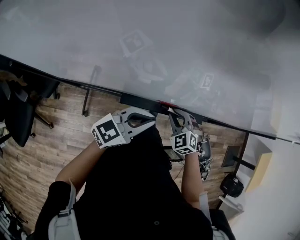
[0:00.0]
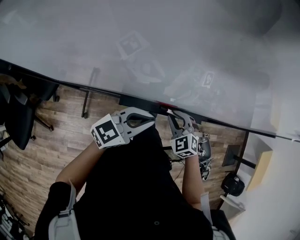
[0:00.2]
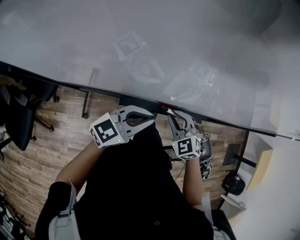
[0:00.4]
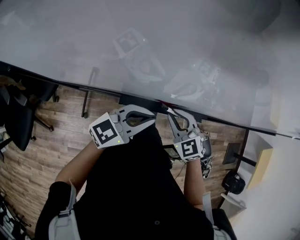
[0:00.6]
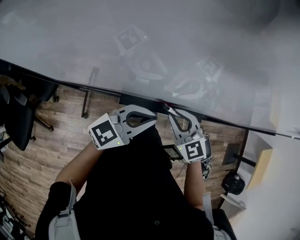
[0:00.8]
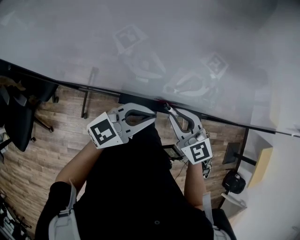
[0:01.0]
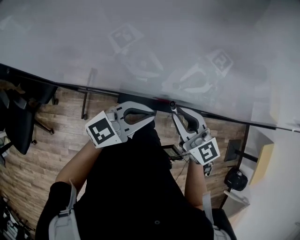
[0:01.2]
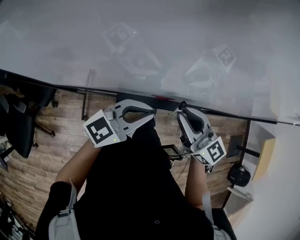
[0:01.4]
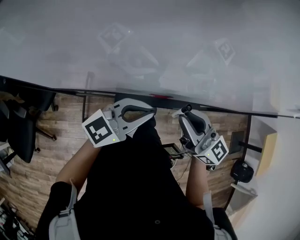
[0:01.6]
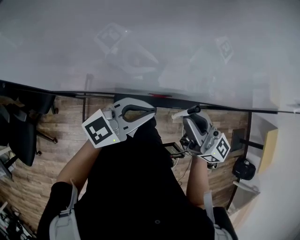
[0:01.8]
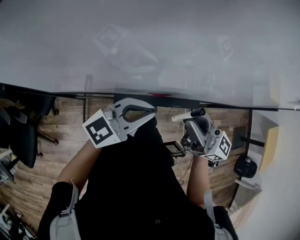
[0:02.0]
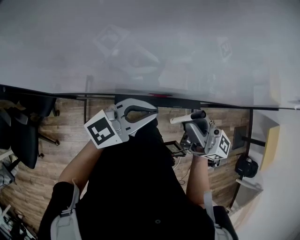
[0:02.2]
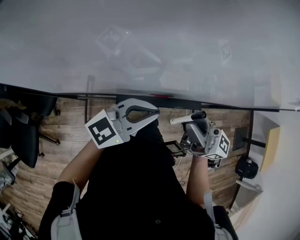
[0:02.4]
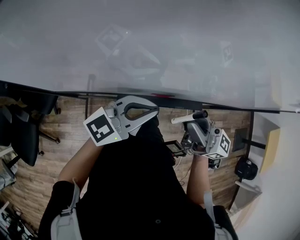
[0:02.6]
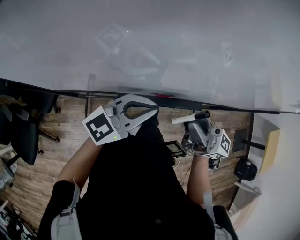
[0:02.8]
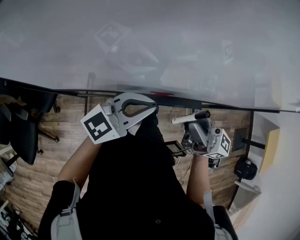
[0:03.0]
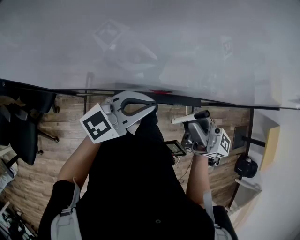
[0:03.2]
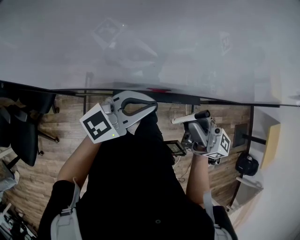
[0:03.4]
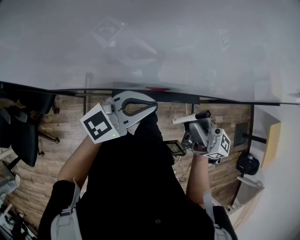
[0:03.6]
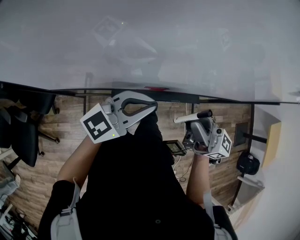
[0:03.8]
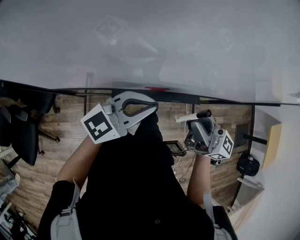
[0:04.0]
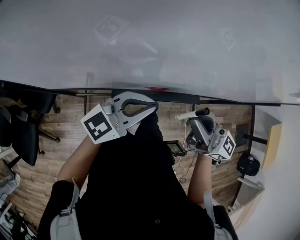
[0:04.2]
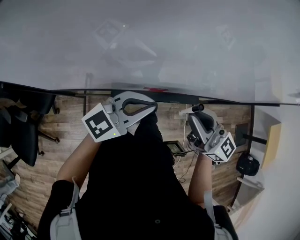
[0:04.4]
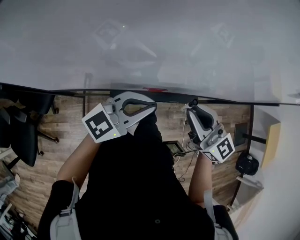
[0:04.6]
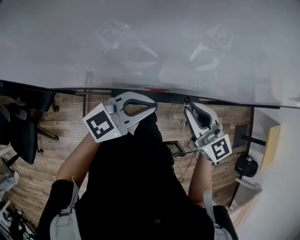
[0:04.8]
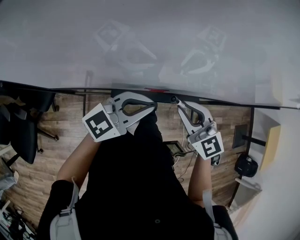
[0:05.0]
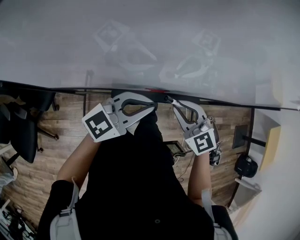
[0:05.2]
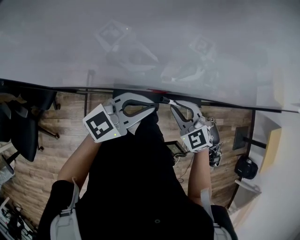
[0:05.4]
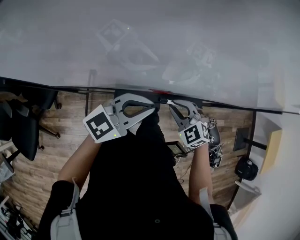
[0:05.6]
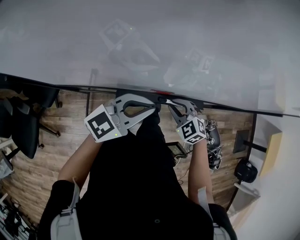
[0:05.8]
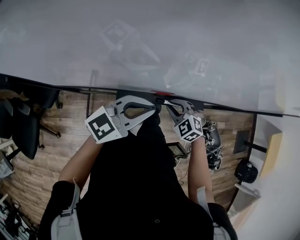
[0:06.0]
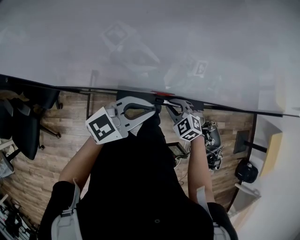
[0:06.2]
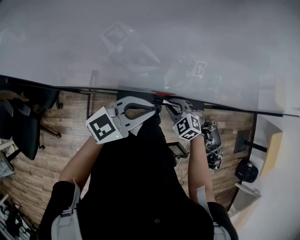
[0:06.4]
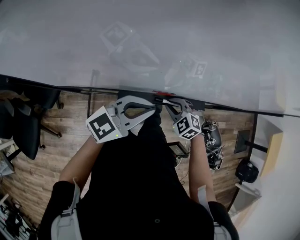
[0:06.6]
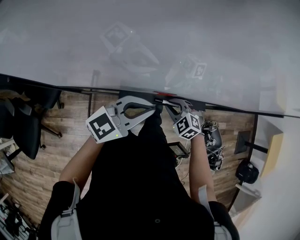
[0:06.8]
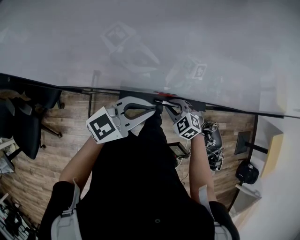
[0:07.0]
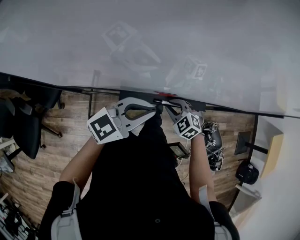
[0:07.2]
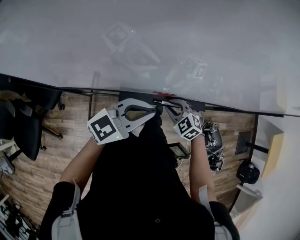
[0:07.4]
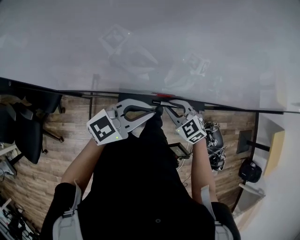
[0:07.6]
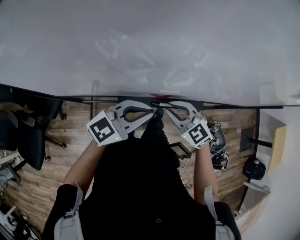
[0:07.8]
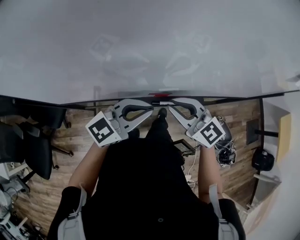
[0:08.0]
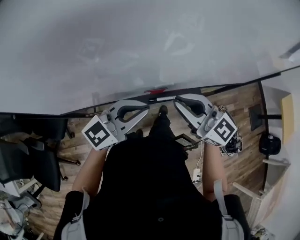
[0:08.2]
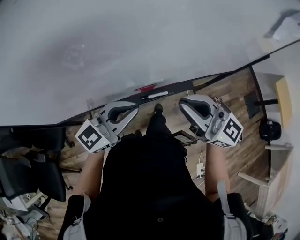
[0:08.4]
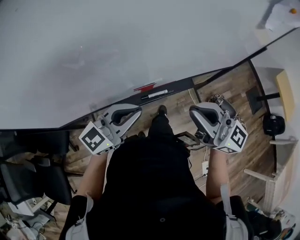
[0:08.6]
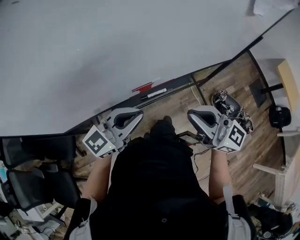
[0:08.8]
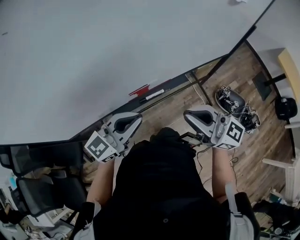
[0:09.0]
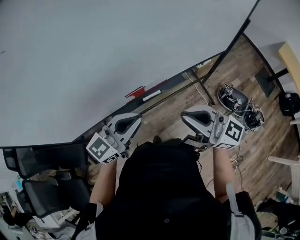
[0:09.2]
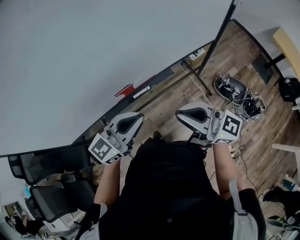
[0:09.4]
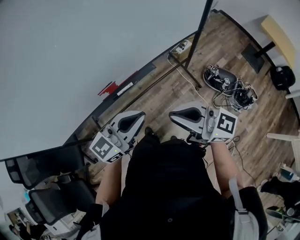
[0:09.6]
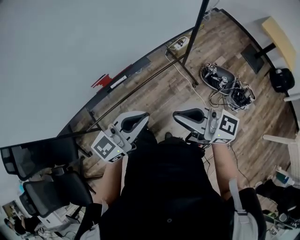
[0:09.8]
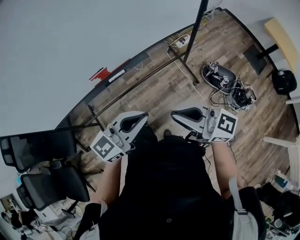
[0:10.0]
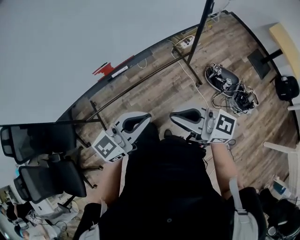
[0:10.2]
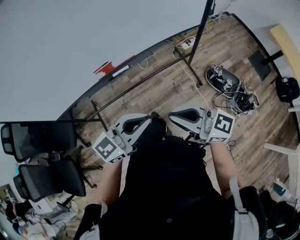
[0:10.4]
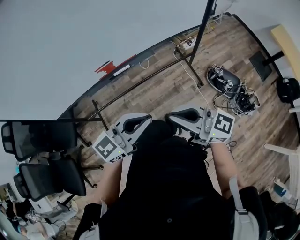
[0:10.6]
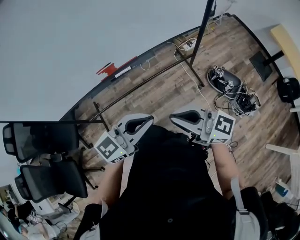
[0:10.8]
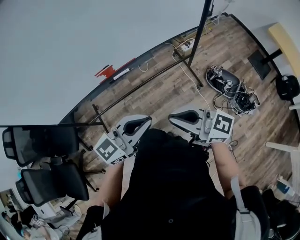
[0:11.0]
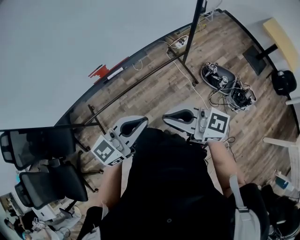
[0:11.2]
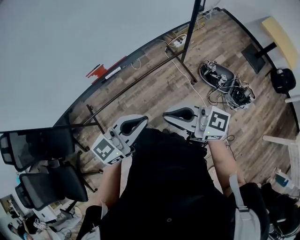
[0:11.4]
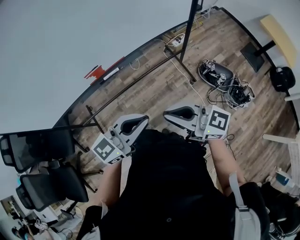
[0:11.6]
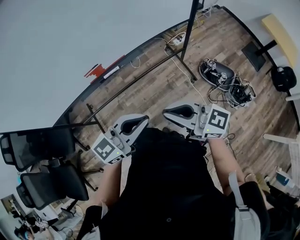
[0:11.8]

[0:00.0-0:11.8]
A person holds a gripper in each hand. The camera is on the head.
0:00.0 to 0:01.4: The right gripper heads upward, covering roughly 20 cm, and points its fingers about 40 degrees further upward, while the left gripper travels upward by about 5 cm.
0:01.4 to 0:03.0: The right gripper shifts by about 5 cm, and swivels about 30 degrees.
0:03.0 to 0:04.4: The right gripper turns by roughly 20 degrees.
0:04.4 to 0:06.0: The right gripper travels downward by roughly 25 cm, and points its fingers some 60 degrees further downward.
0:06.0 to 0:07.4: The grippers make only small movements.
0:07.4 to 0:08.8: The left gripper is displaced backward by approximately 5 cm; the right gripper heads upward and backward, covering approximately 30 cm, and tilts its fingers roughly 60 degrees upward.
0:08.8 to 0:10.4: The left gripper heads to the right and backward, covering some 30 cm. Meanwhile the right gripper travels backward and to the right by some 20 cm.
0:10.4 to 0:11.8: There are only small adjustments of the grippers.

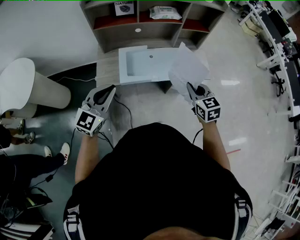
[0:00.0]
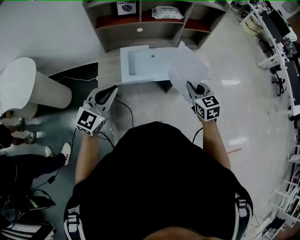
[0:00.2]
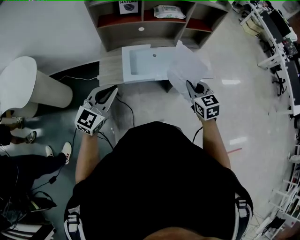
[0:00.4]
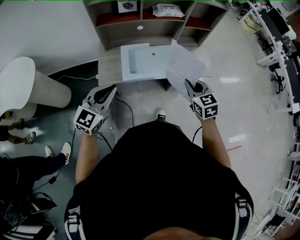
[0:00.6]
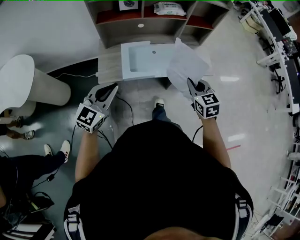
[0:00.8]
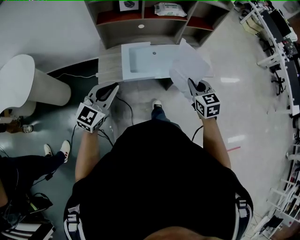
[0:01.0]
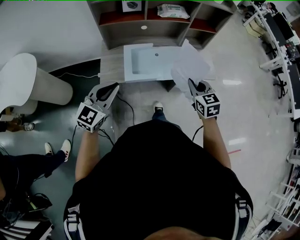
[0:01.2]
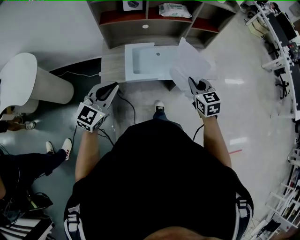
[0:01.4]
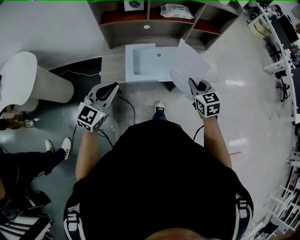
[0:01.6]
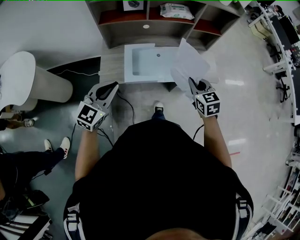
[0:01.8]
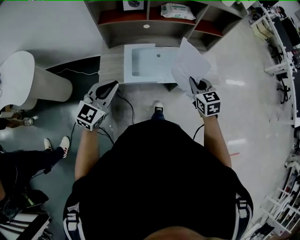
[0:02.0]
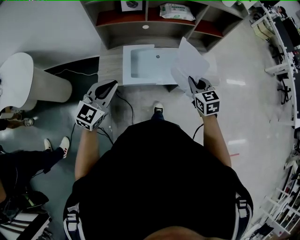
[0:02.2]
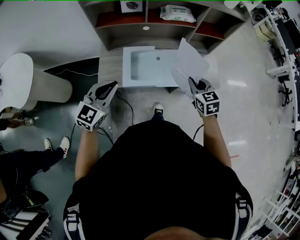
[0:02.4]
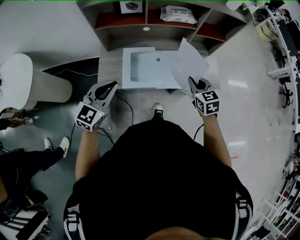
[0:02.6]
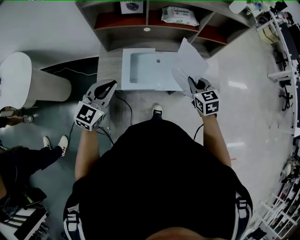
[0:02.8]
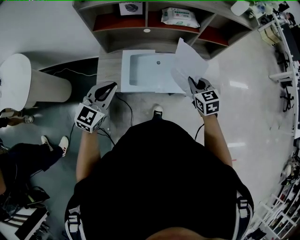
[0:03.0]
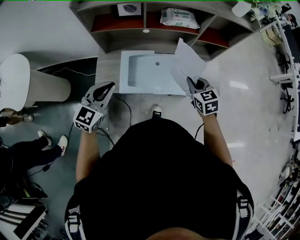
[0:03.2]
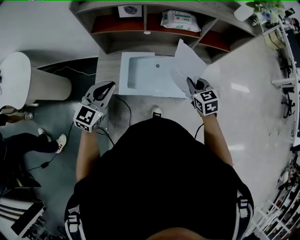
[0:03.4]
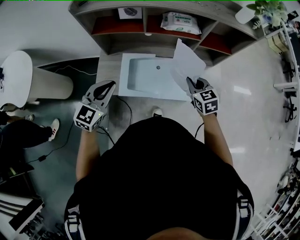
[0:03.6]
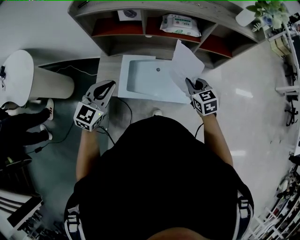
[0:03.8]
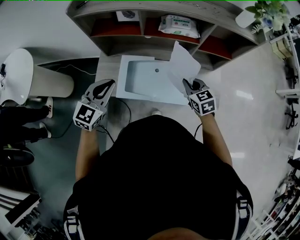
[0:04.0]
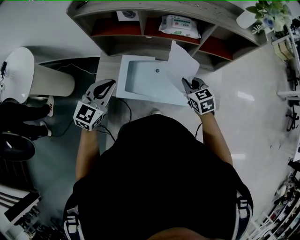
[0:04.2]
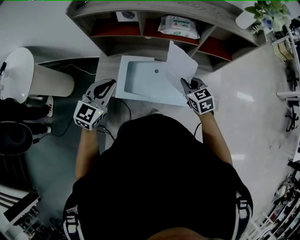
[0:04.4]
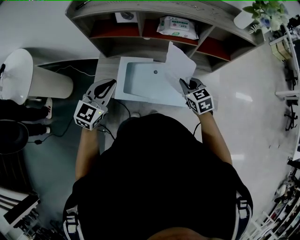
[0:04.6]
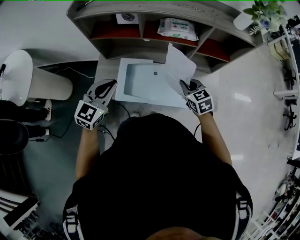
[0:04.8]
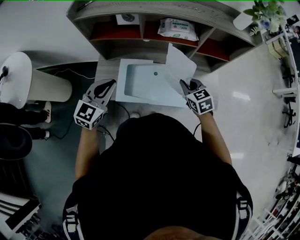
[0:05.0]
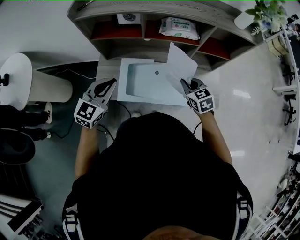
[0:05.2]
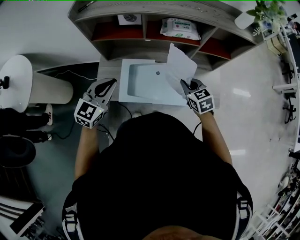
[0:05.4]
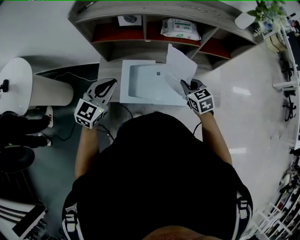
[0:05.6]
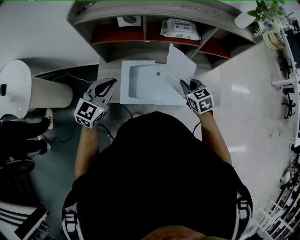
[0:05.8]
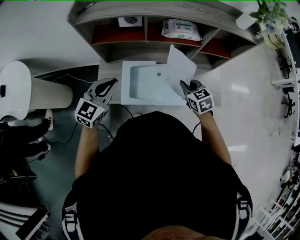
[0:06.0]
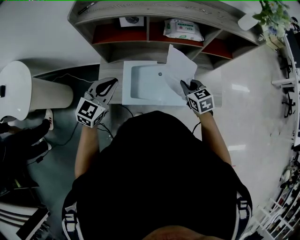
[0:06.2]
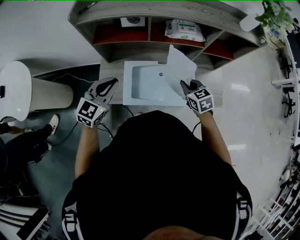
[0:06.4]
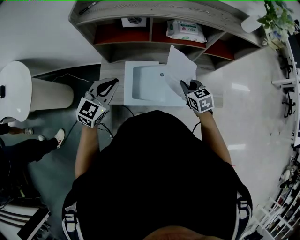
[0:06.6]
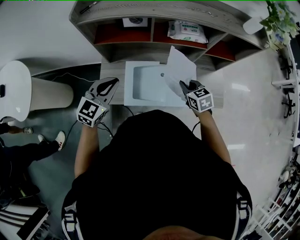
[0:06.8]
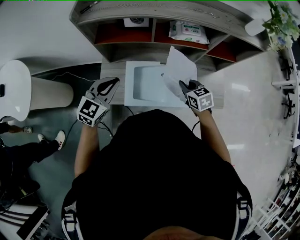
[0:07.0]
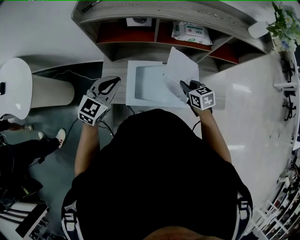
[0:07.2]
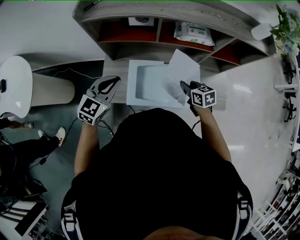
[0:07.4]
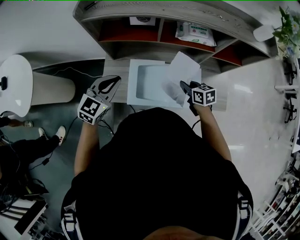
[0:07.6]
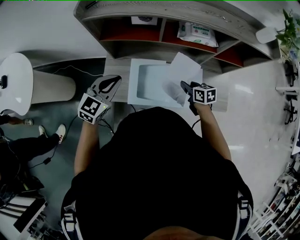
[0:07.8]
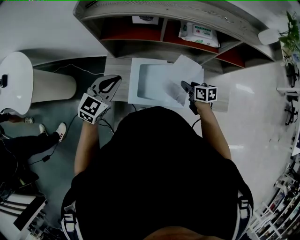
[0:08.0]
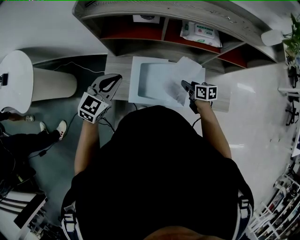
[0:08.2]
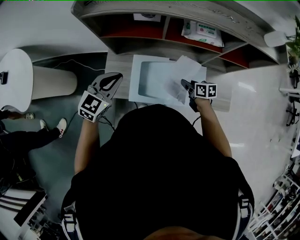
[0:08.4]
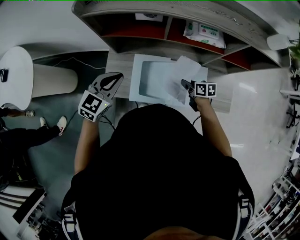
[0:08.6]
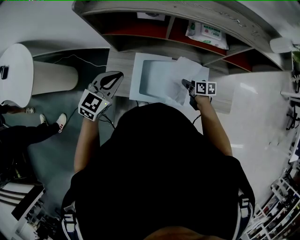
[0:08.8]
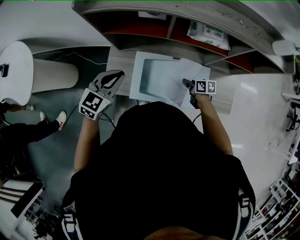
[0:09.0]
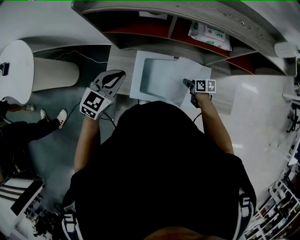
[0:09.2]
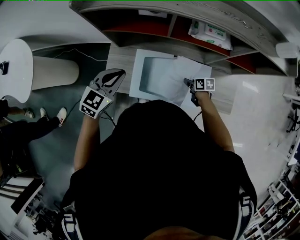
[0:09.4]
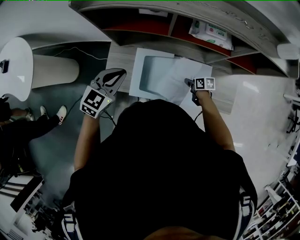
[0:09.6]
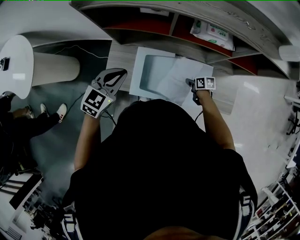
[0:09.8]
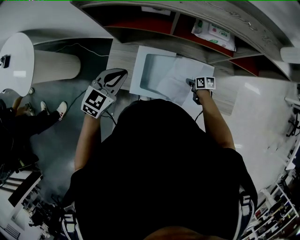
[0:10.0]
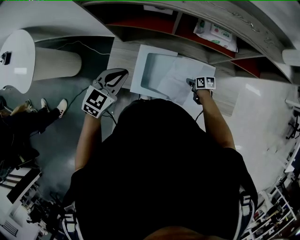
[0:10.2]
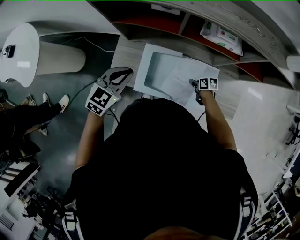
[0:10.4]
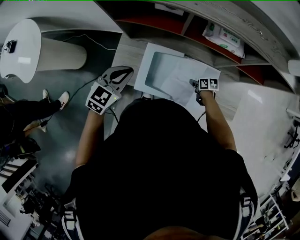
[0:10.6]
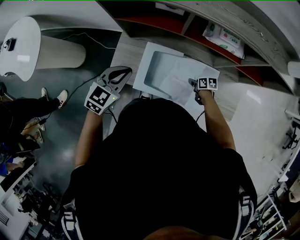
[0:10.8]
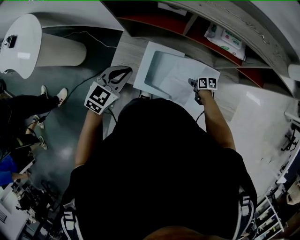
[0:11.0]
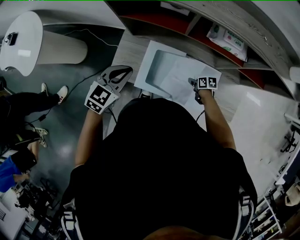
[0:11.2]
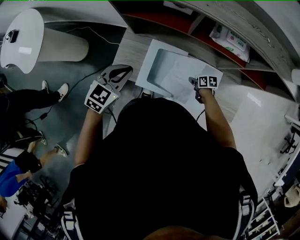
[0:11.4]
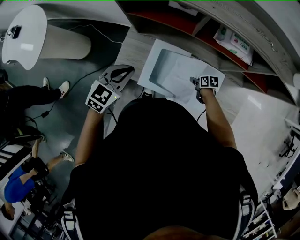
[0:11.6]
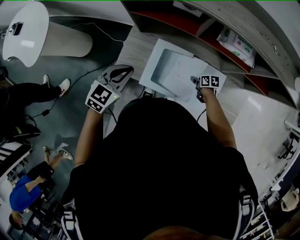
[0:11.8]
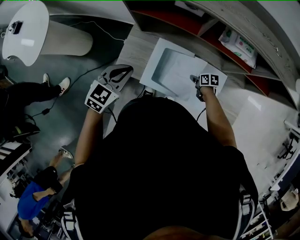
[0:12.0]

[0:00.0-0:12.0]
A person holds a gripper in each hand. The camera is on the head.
0:00.0 to 0:01.6: The left gripper ends up about 5 cm from where it was. The right gripper heads forward, covering roughly 5 cm.
0:01.6 to 0:03.0: The grippers both shift forward by approximately 15 cm.
0:03.0 to 0:04.4: The right gripper is displaced forward by about 10 cm. Meanwhile the left gripper moves forward and to the right, roughly 10 cm.
0:04.4 to 0:06.0: The left gripper heads to the left, covering roughly 5 cm.
0:06.0 to 0:07.6: The right gripper moves downward, roughly 5 cm, and rotates about 20 degrees. Meanwhile the left gripper changes place by approximately 5 cm.
0:07.6 to 0:09.0: The right gripper travels downward by roughly 15 cm, and rotates some 20 degrees.
0:09.0 to 0:10.4: The right gripper is displaced downward by some 10 cm.
0:10.4 to 0:12.0: The left gripper moves to the left, approximately 5 cm, while the right gripper ends up roughly 5 cm from where it was.
